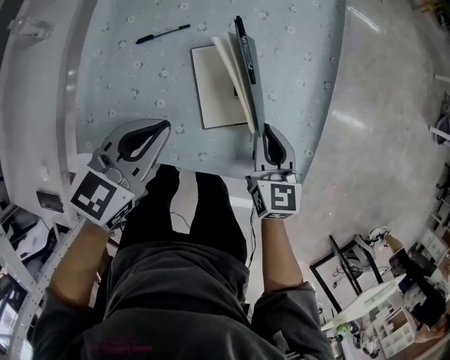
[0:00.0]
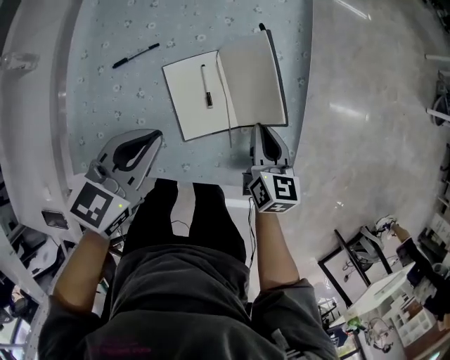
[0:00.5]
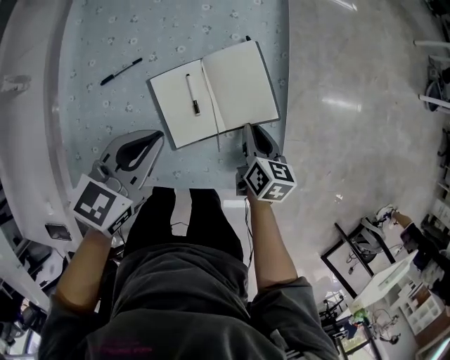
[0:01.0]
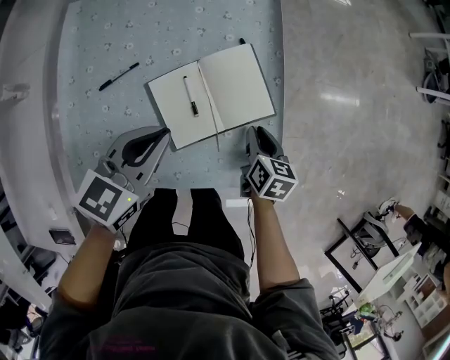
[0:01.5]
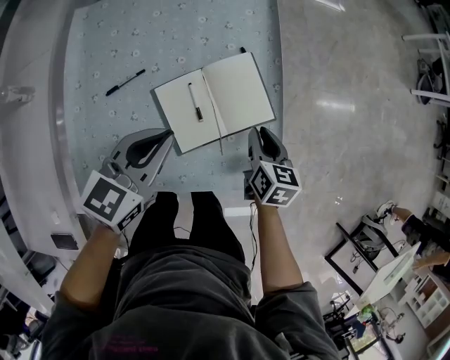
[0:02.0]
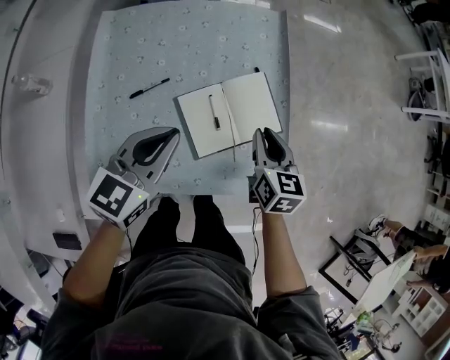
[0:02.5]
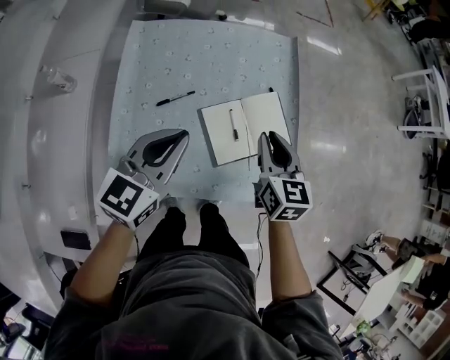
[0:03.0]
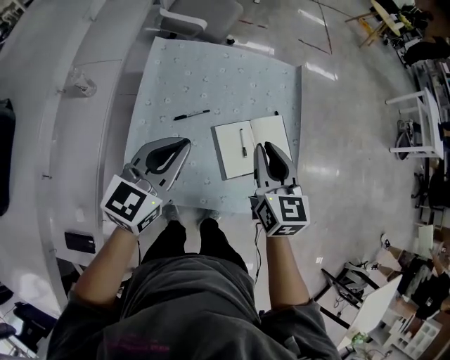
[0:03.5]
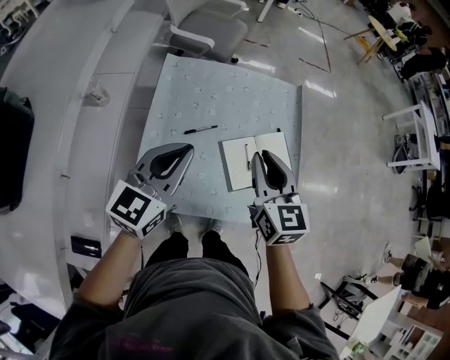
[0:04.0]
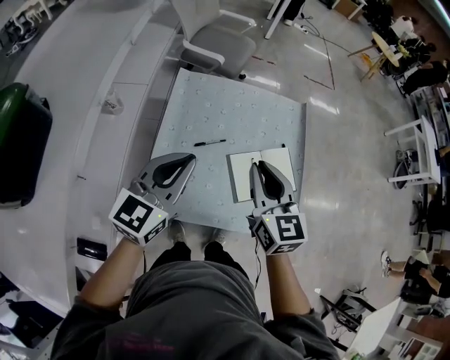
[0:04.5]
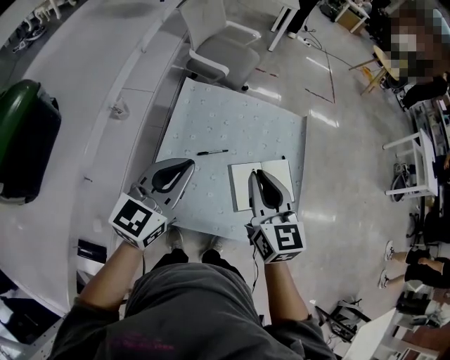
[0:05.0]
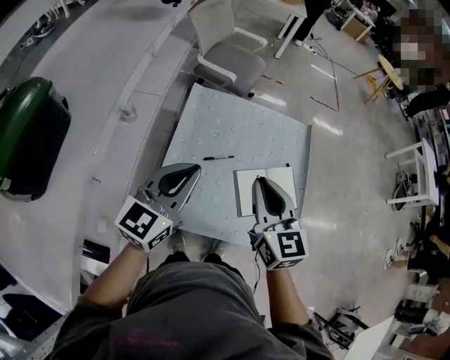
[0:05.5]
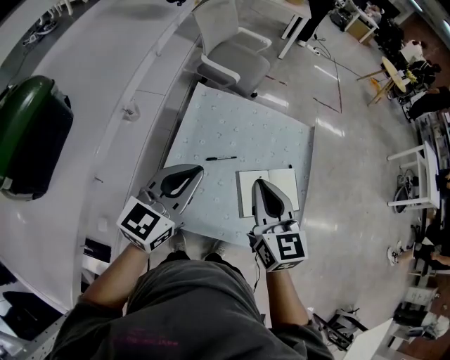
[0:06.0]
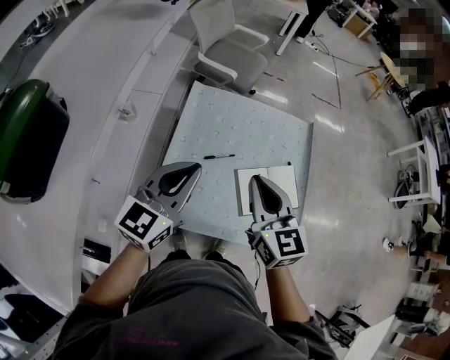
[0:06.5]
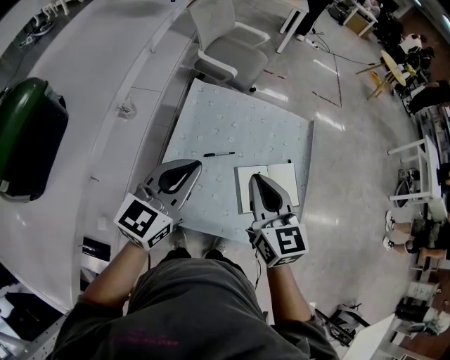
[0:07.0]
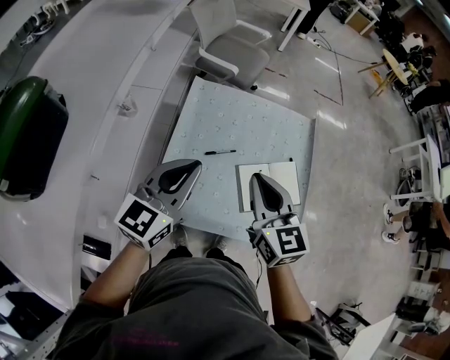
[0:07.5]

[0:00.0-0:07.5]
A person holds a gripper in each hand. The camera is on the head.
0:00.0 to 0:02.0: The left gripper moves forward and to the right, roughly 10 cm, while the right gripper travels to the right and forward by some 10 cm, and swivels approximately 30 degrees.
0:02.0 to 0:04.0: The two grippers go some 35 cm upward and to the left. The left gripper changes its angle by some 20 degrees; the right gripper swivels some 40 degrees.
0:04.0 to 0:05.5: The left gripper travels upward and to the left by approximately 10 cm. The right gripper shifts about 10 cm to the left and upward.
0:05.5 to 0:07.5: The grippers stay close to where they were, moving slightly.

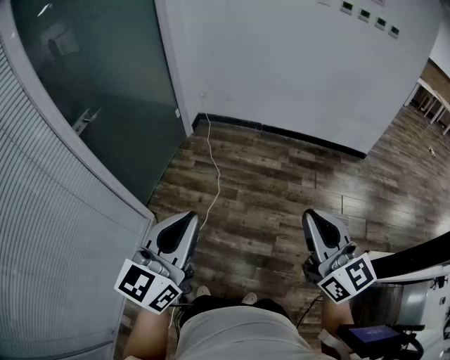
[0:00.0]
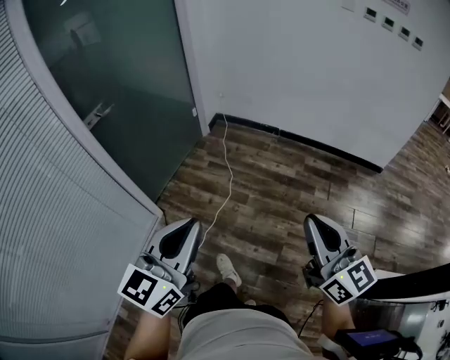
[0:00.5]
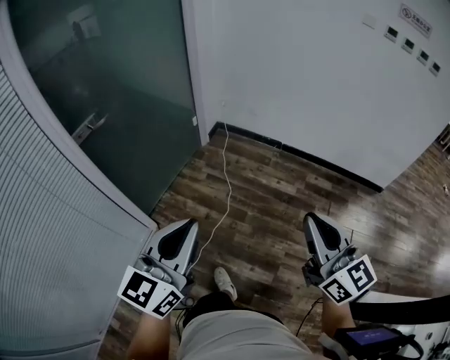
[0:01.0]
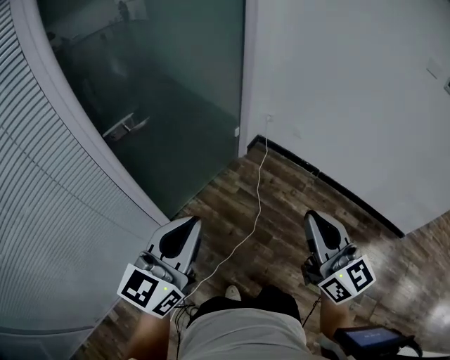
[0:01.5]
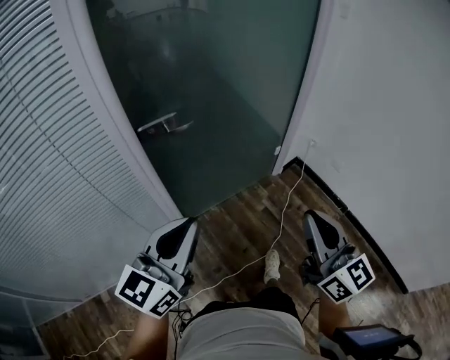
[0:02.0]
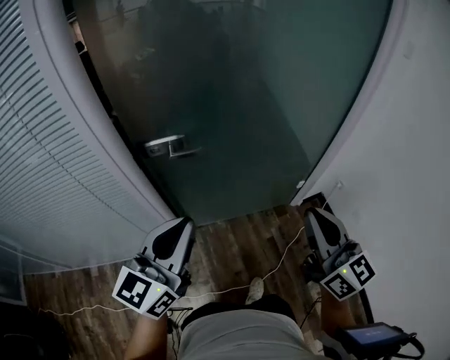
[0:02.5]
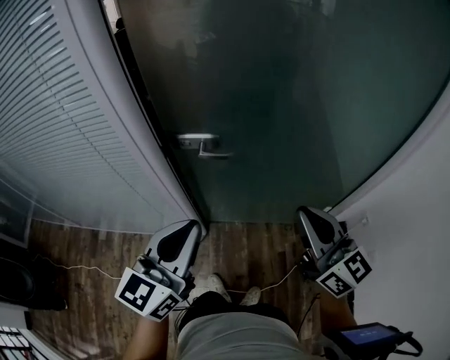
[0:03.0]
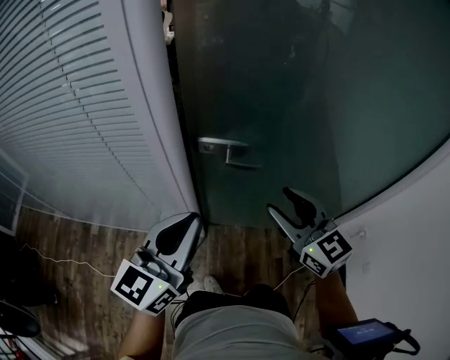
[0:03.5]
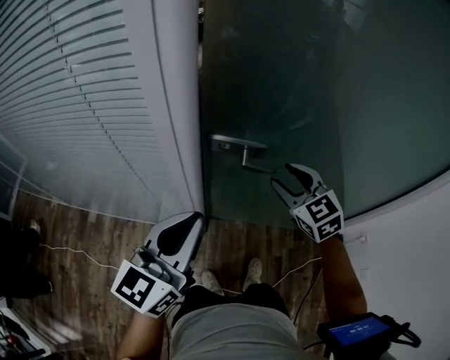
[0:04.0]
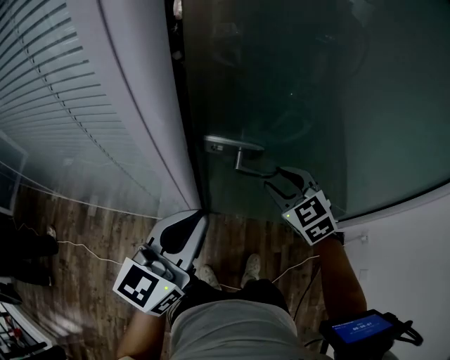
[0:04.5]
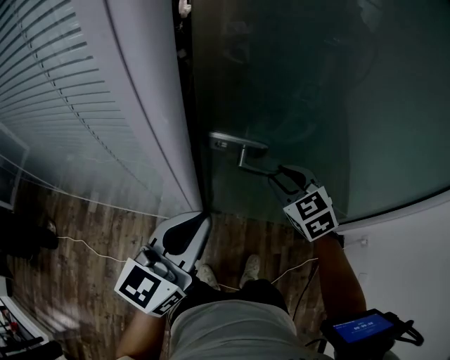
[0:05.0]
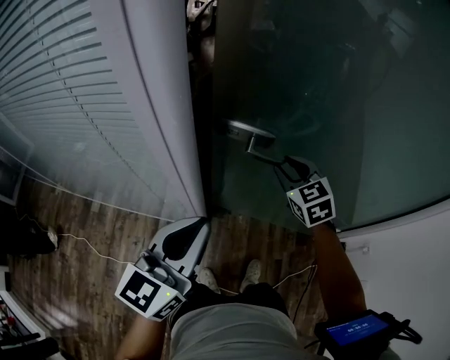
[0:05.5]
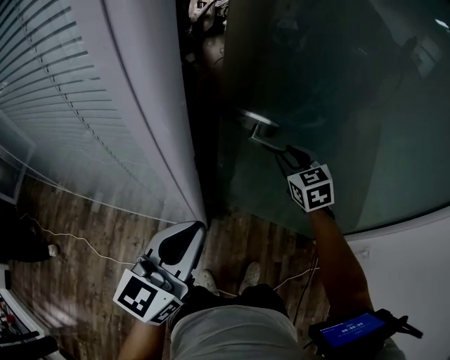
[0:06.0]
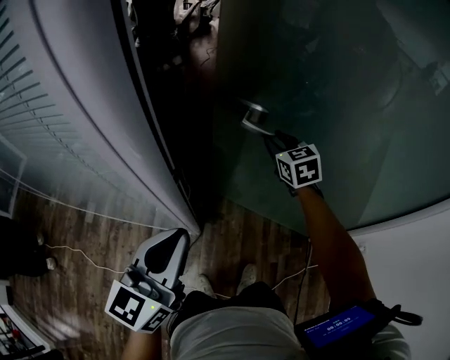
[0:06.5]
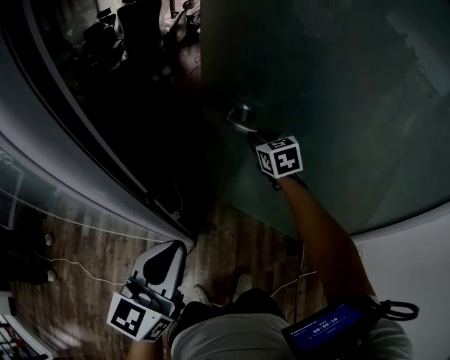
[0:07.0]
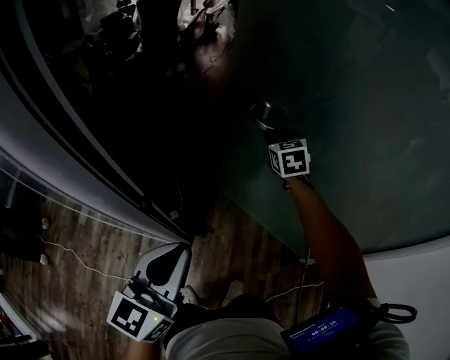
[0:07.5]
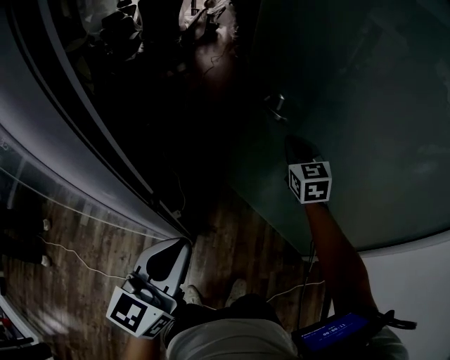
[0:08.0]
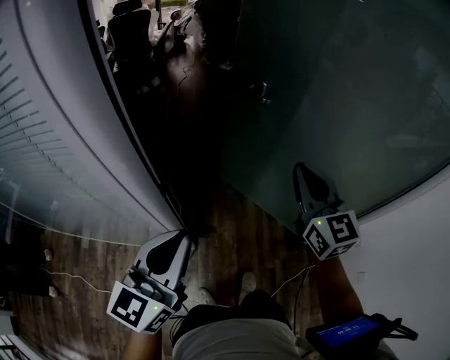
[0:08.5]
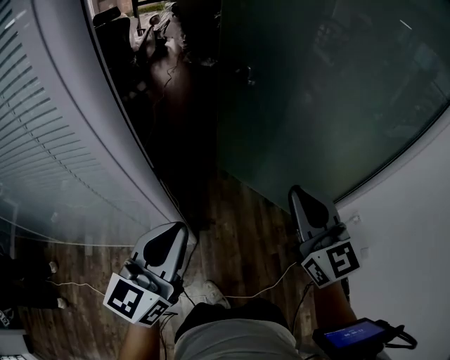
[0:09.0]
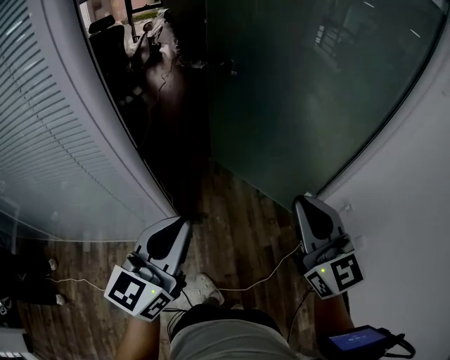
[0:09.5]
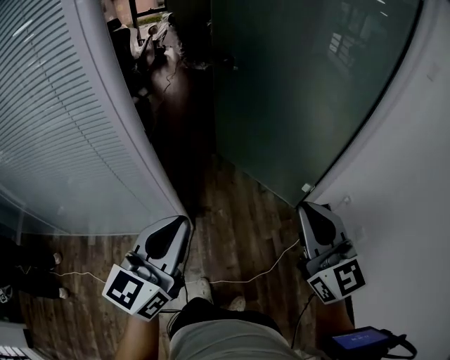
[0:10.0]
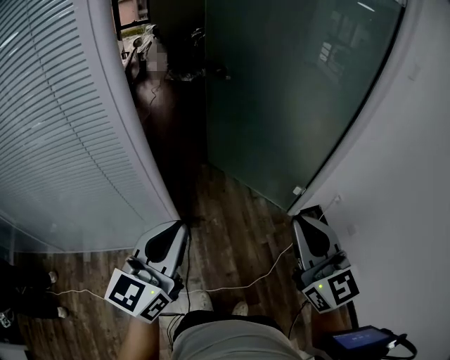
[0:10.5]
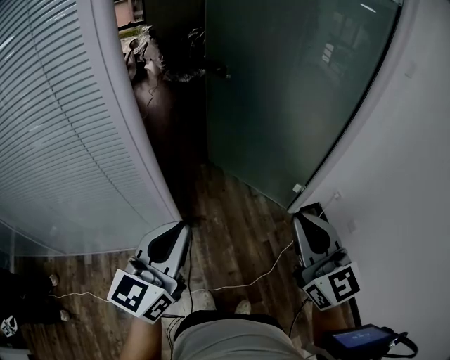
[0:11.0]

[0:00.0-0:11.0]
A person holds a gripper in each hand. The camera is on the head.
0:00.0 to 0:02.0: The right gripper changes place by about 50 cm, and rotates approximately 40 degrees, while the left gripper shifts by approximately 30 cm, and changes its angle by some 40 degrees.
0:02.0 to 0:03.5: The left gripper moves roughly 10 cm, and rotates approximately 40 degrees; the right gripper shifts by about 30 cm, turns by approximately 50 degrees, and opens its fingers.
0:03.5 to 0:05.5: The right gripper moves forward and downward, roughly 25 cm, and changes its angle by about 30 degrees. The left gripper is displaced forward by roughly 5 cm.
0:05.5 to 0:07.5: The right gripper goes approximately 20 cm forward. Meanwhile the left gripper is displaced to the right and forward by approximately 10 cm.
0:07.5 to 0:09.0: The left gripper travels backward by roughly 10 cm; the right gripper heads backward, covering approximately 40 cm, tips its fingers upward by approximately 30 degrees, and closes its fingers.
0:09.0 to 0:11.0: The two grippers go some 20 cm backward.

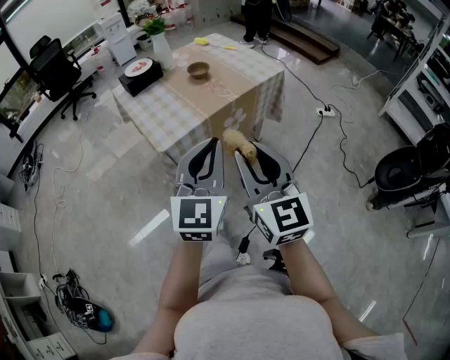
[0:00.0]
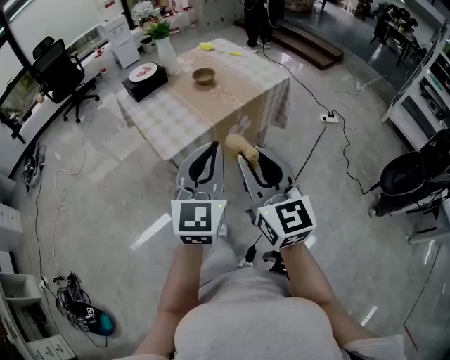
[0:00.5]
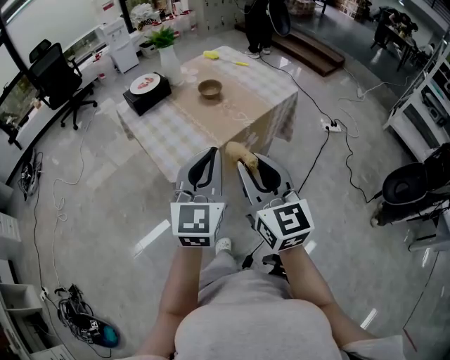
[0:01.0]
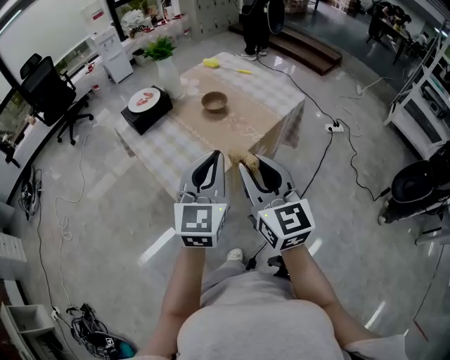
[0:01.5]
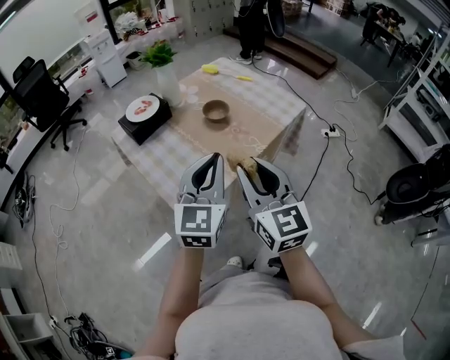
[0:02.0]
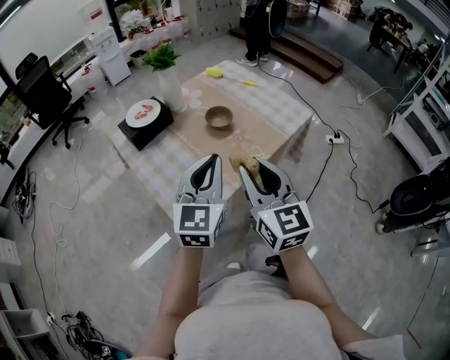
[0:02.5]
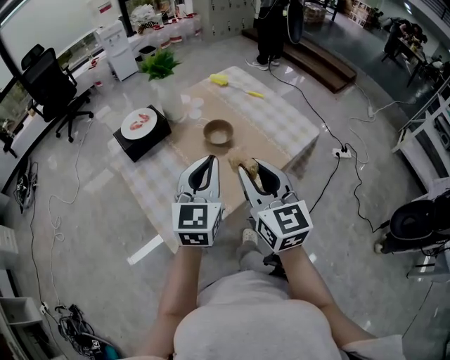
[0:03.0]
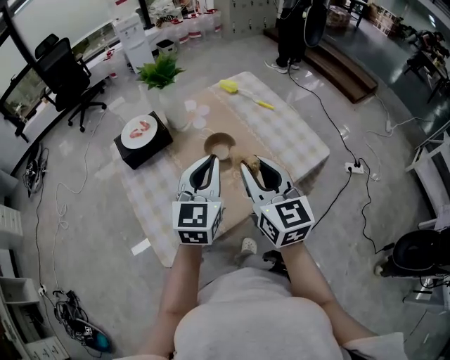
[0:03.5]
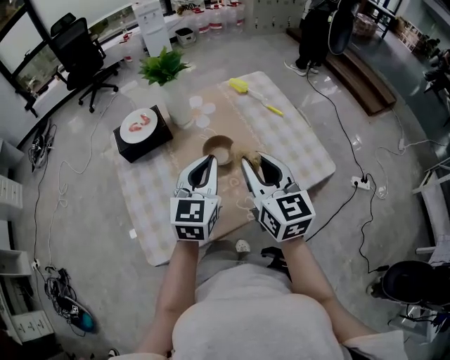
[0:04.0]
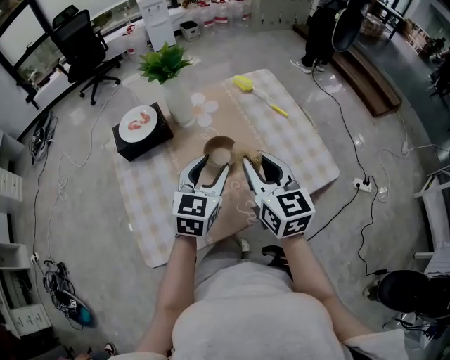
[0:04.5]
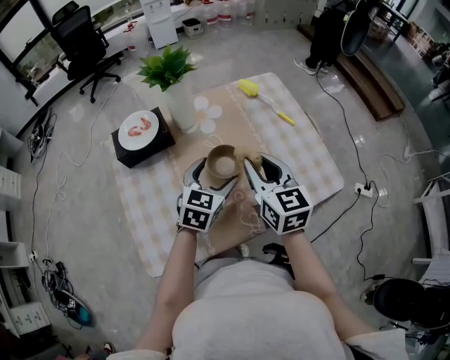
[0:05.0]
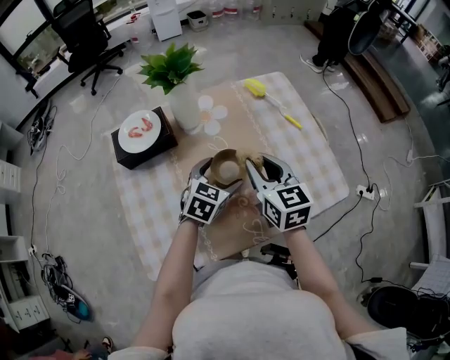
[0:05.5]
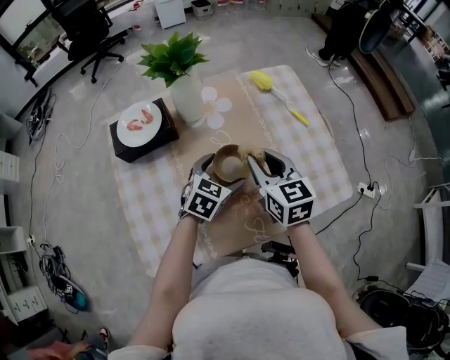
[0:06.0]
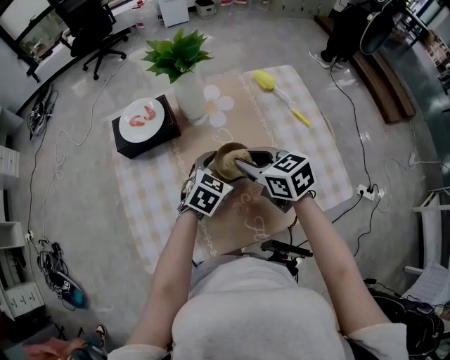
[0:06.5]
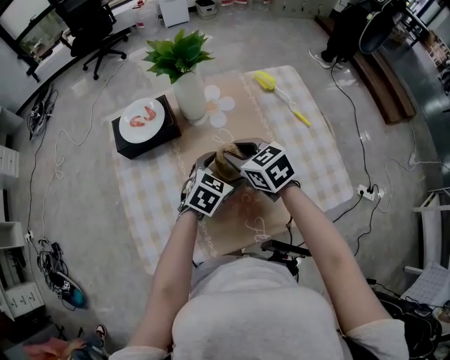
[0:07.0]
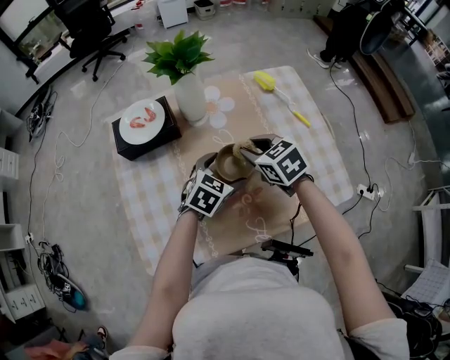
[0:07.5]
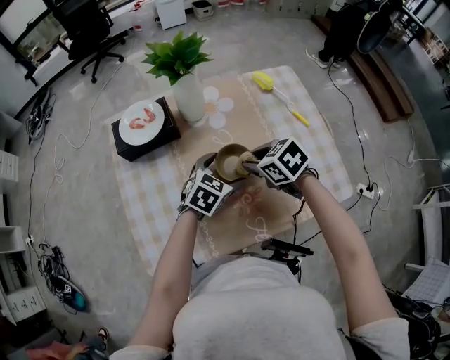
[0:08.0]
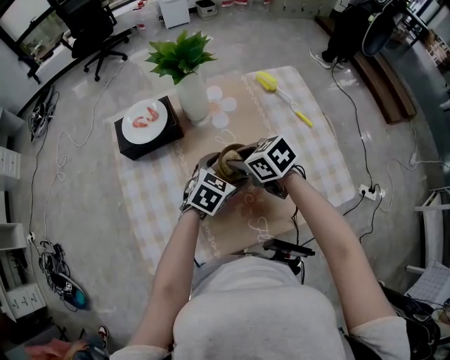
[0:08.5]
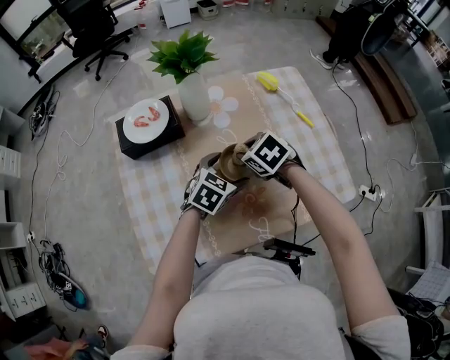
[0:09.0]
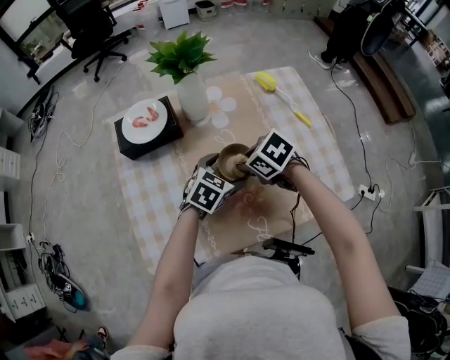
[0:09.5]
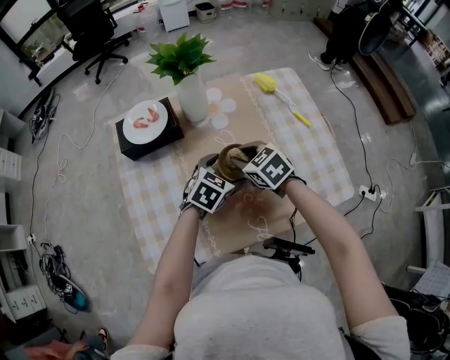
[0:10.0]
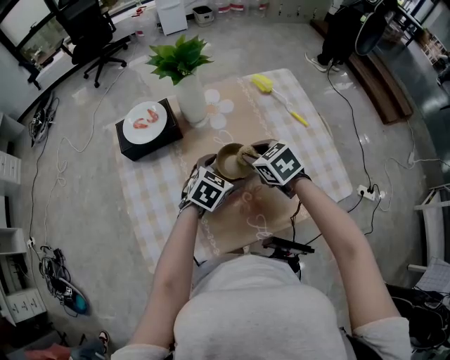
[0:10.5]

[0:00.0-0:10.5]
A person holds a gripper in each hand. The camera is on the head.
0:00.0 to 0:02.0: Both grippers move forward and to the left, about 25 cm.
0:02.0 to 0:04.0: Both grippers travel together forward, some 25 cm. The left gripper changes its angle by some 20 degrees; the right gripper turns by about 20 degrees.
0:04.0 to 0:06.5: The right gripper goes about 20 cm downward, forward and to the left, and turns by roughly 40 degrees; the left gripper goes roughly 20 cm downward and forward, angles its fingers downward, by roughly 30 degrees, and opens up.
0:06.5 to 0:08.5: The right gripper shifts by roughly 5 cm.
0:08.5 to 0:10.5: The right gripper moves about 5 cm.
